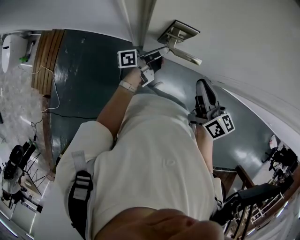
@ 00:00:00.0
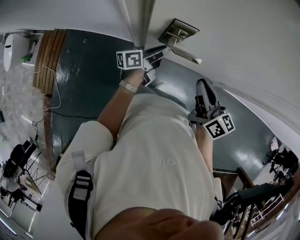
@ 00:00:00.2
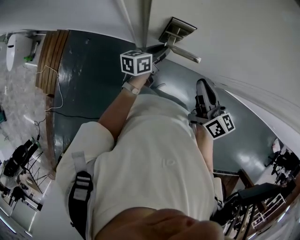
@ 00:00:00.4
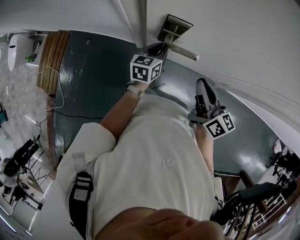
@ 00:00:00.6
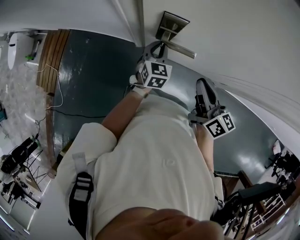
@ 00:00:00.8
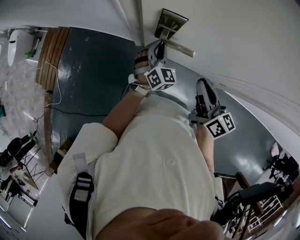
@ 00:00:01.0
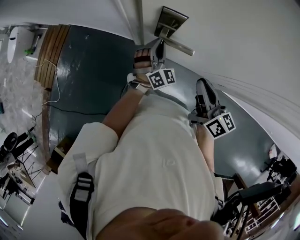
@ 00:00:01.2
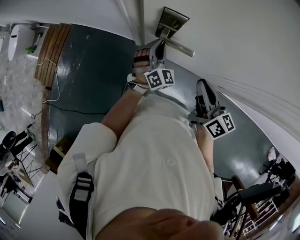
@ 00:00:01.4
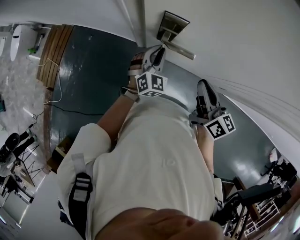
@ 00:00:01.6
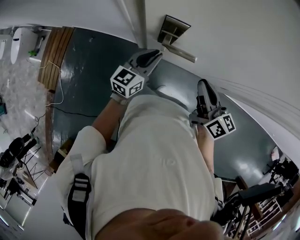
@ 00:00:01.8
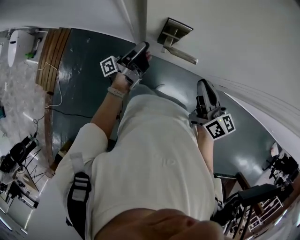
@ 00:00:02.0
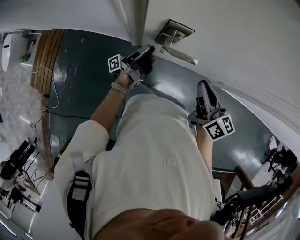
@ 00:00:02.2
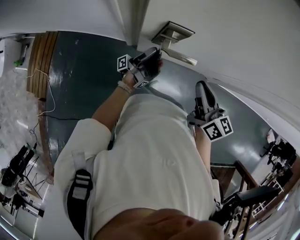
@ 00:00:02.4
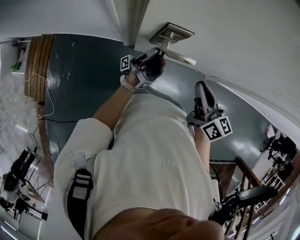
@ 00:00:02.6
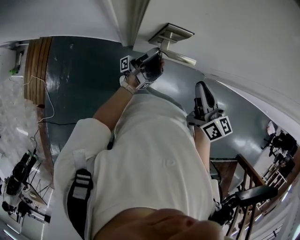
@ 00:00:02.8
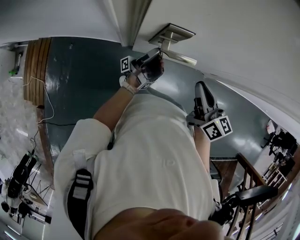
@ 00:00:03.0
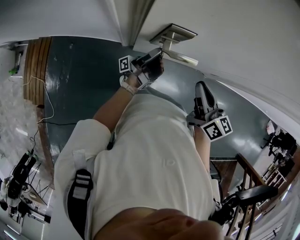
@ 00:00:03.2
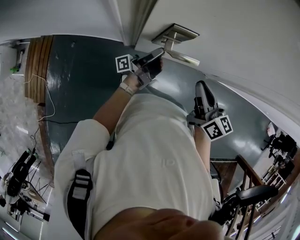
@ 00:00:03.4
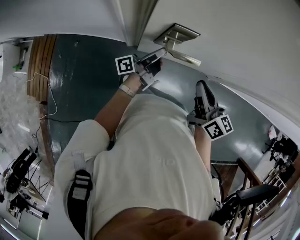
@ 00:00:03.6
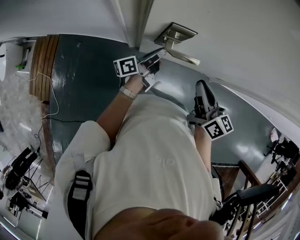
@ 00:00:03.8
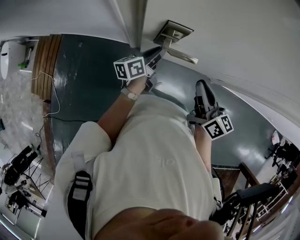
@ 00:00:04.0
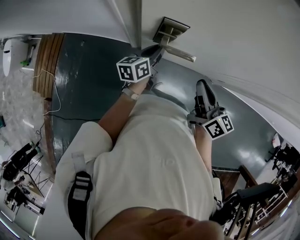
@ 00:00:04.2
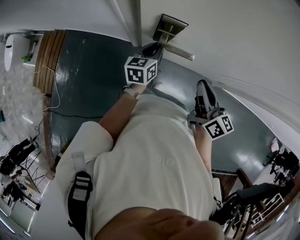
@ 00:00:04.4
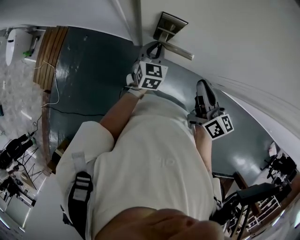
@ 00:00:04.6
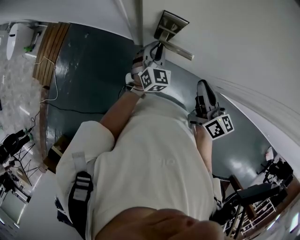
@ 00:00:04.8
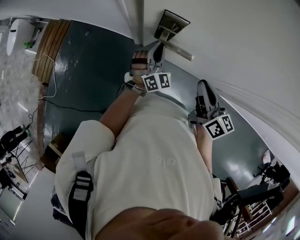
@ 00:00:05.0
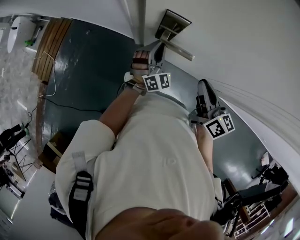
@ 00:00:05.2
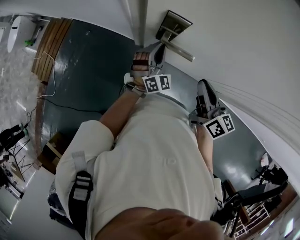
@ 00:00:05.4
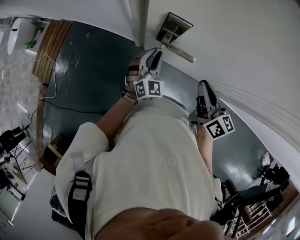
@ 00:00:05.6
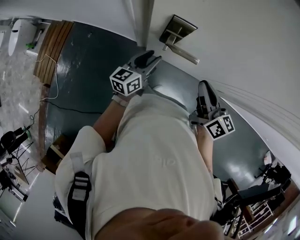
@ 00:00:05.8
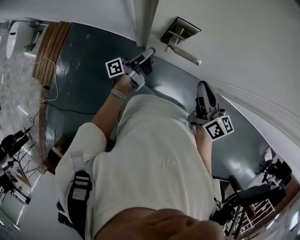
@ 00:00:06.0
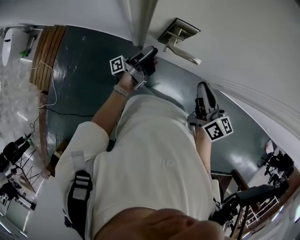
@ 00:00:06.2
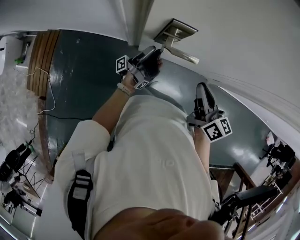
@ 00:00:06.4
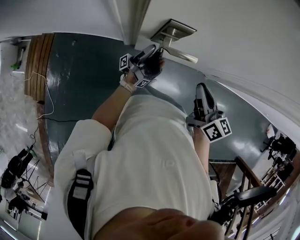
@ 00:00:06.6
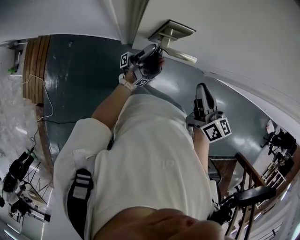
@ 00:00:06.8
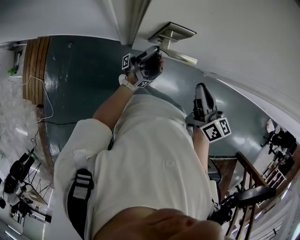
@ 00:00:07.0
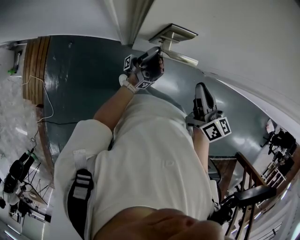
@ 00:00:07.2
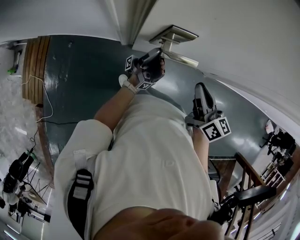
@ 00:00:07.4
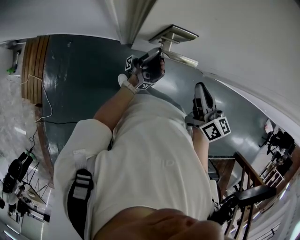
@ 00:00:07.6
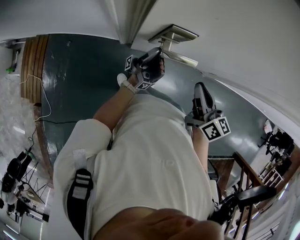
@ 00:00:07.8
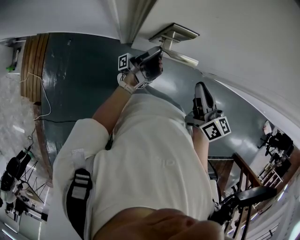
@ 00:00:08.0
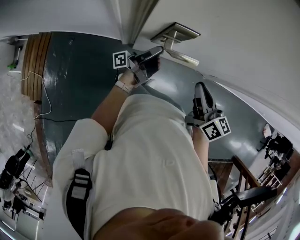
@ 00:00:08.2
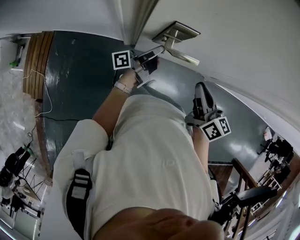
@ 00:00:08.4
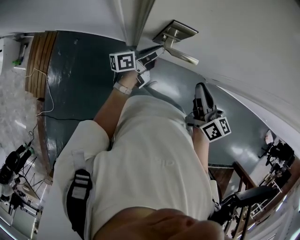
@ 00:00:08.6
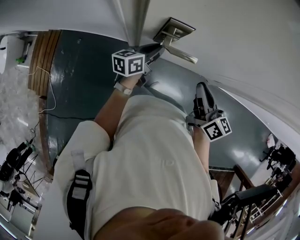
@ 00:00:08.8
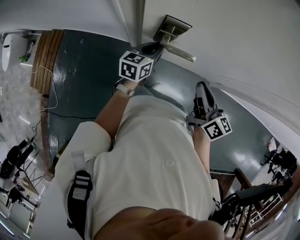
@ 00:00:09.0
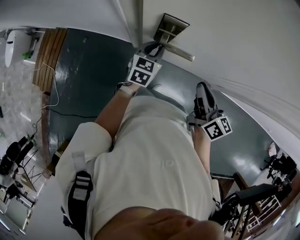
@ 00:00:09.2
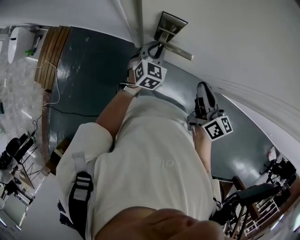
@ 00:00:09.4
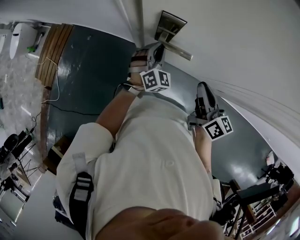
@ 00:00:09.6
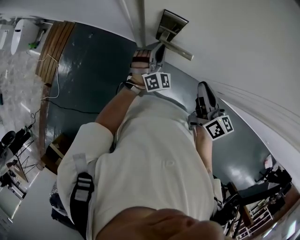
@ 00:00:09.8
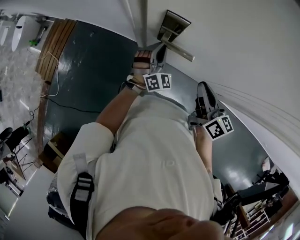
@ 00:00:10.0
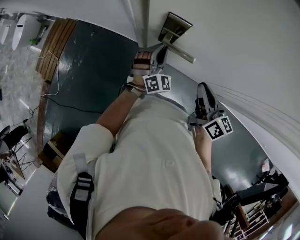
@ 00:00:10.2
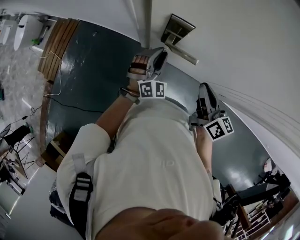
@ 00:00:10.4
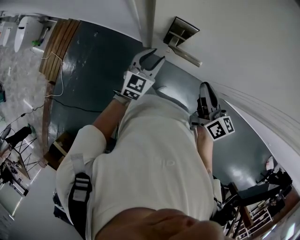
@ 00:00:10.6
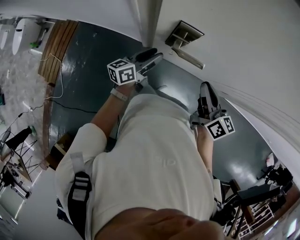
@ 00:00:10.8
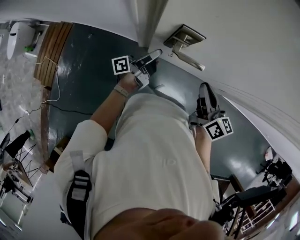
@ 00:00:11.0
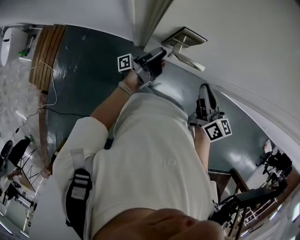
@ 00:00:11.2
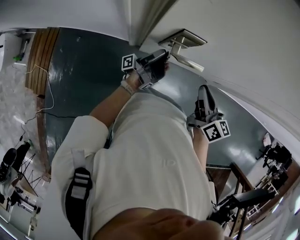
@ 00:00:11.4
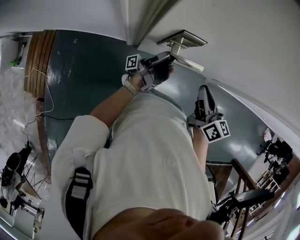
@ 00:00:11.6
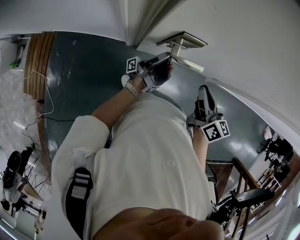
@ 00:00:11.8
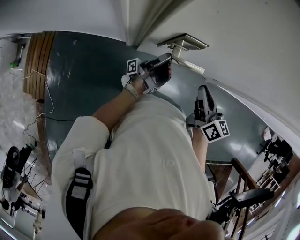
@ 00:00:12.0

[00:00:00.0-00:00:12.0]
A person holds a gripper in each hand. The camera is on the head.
00:00:00.0 to 00:00:01.6: The left gripper twists about 100 degrees clockwise, seen from behind.
00:00:01.6 to 00:00:03.0: The left gripper reaches some 10 cm to the left, then returns, twists about 130 degrees counterclockwise, seen from behind, and opens, then closes once more.
00:00:03.0 to 00:00:04.4: The left gripper points its fingers approximately 70 degrees further downward.
00:00:04.4 to 00:00:06.0: The left gripper is displaced to the left by about 5 cm, points its fingers roughly 40 degrees further upward, and opens up.
00:00:06.0 to 00:00:07.6: The left gripper heads to the right, covering some 5 cm, tips its fingers upward by some 30 degrees, and closes up.
00:00:07.6 to 00:00:09.0: The left gripper angles its fingers downward, by about 70 degrees.
00:00:09.0 to 00:00:10.4: The left gripper rolls clockwise, seen from behind, by approximately 60 degrees.
00:00:10.4 to 00:00:12.0: The left gripper tips its fingers upward by some 60 degrees. The right gripper changes place by approximately 5 cm.

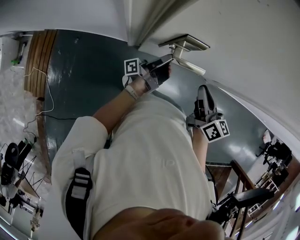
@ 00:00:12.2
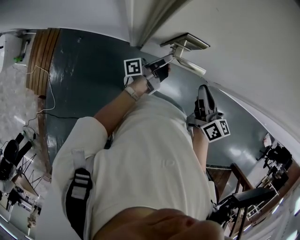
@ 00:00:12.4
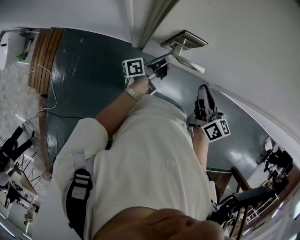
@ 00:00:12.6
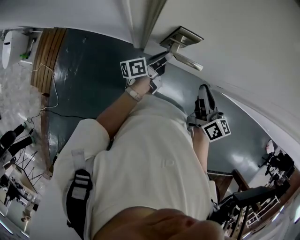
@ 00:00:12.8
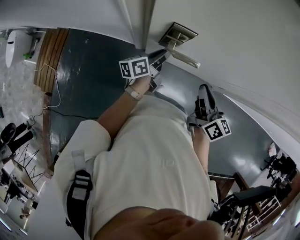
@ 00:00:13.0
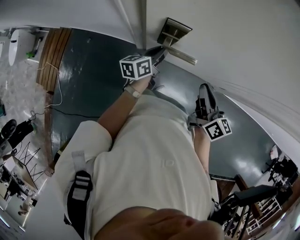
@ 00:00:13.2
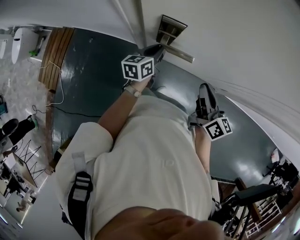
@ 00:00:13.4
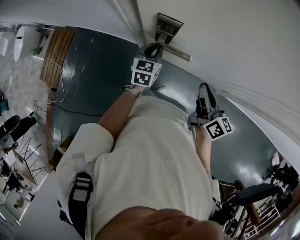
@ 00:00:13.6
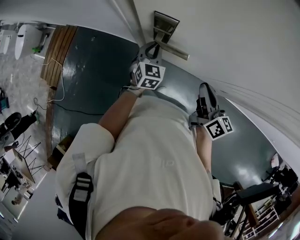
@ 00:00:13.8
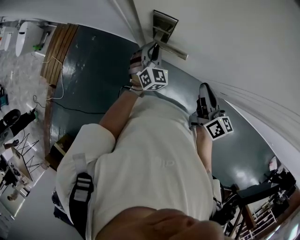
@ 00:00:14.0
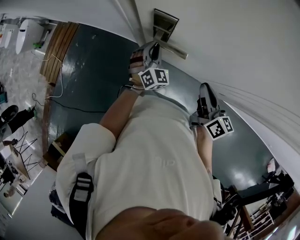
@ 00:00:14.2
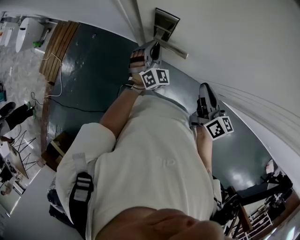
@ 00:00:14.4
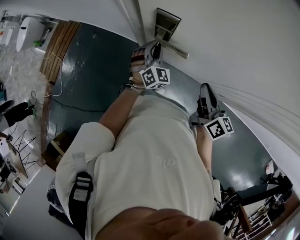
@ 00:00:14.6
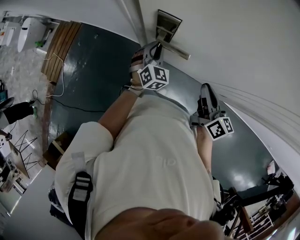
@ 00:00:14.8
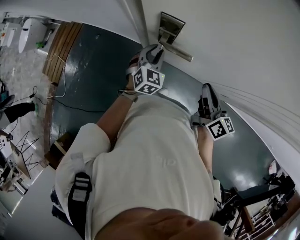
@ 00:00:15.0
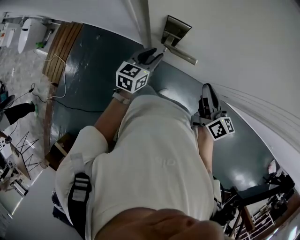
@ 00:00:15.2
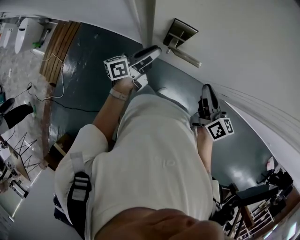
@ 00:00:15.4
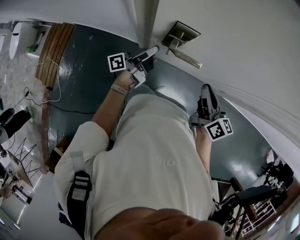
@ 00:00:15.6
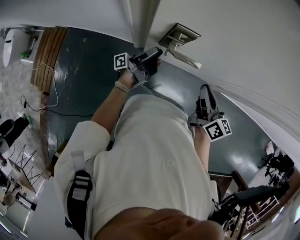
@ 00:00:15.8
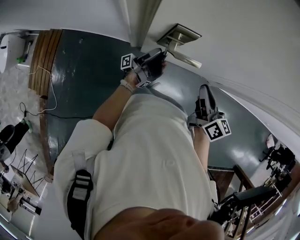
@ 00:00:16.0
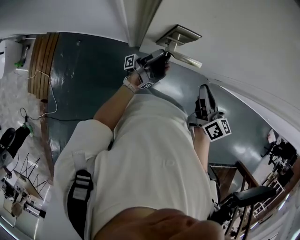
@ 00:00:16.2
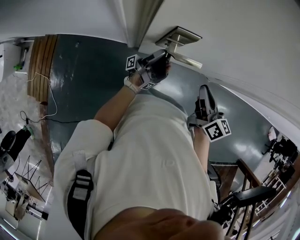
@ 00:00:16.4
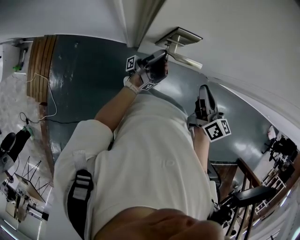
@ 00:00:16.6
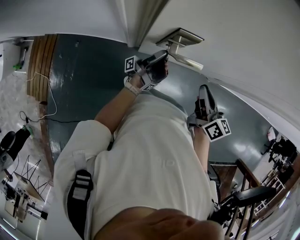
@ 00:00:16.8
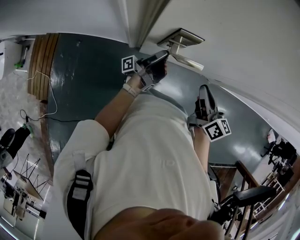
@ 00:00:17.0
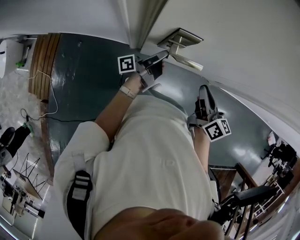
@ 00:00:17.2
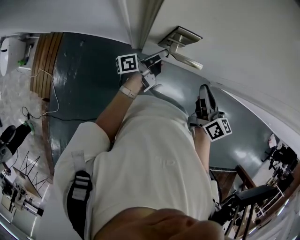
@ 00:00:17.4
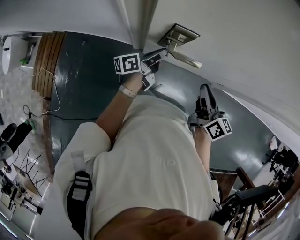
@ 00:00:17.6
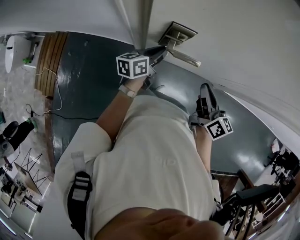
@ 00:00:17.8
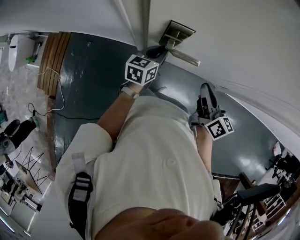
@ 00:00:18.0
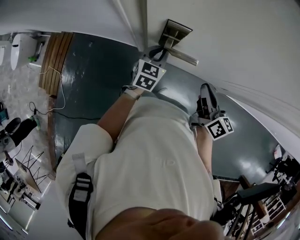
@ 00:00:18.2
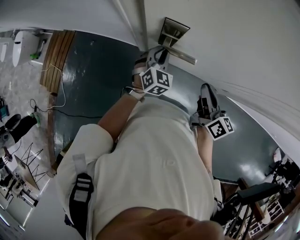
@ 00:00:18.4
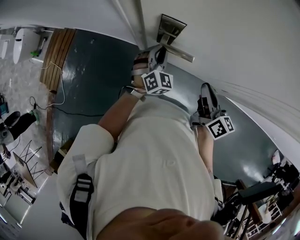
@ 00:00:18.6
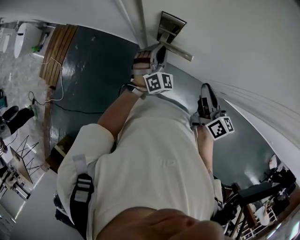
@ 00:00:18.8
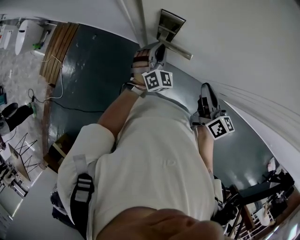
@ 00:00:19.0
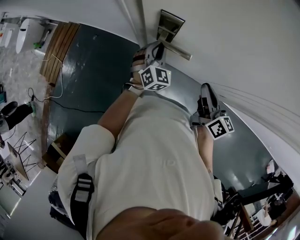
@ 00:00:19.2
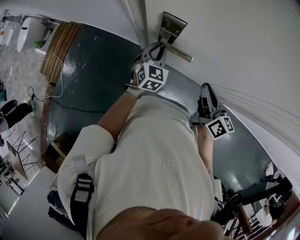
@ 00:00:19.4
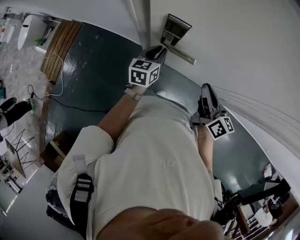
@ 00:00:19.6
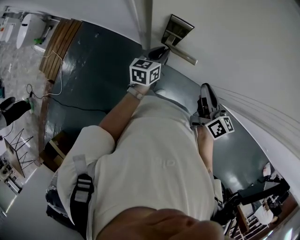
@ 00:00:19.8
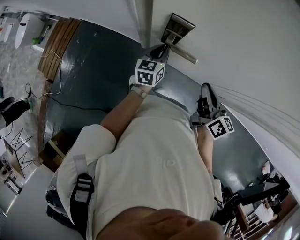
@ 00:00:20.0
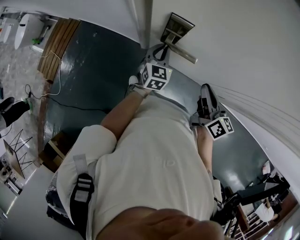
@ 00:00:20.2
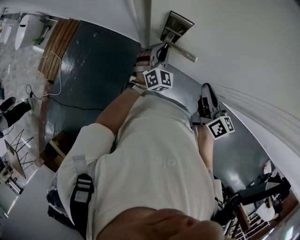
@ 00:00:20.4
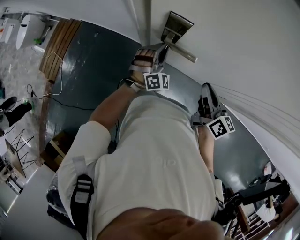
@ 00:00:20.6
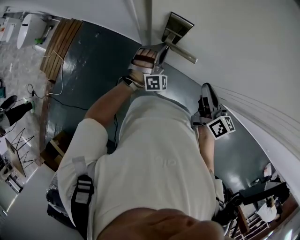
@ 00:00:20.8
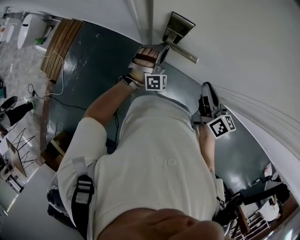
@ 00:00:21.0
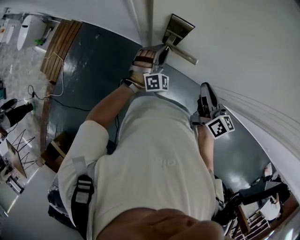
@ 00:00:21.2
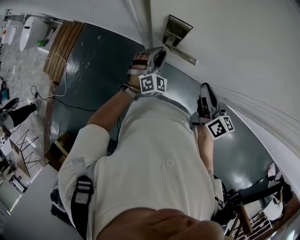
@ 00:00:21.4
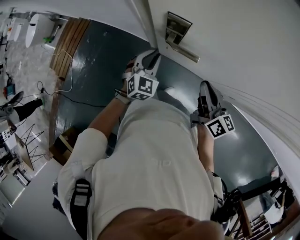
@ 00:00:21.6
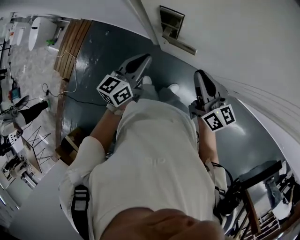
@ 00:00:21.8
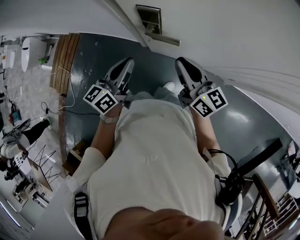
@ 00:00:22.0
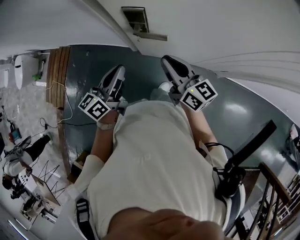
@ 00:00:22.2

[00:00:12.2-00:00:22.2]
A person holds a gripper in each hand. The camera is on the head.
00:00:12.2 to 00:00:13.6: The right gripper travels to the right by roughly 5 cm. Meanwhile the left gripper tilts its fingers roughly 60 degrees downward.
00:00:13.6 to 00:00:15.0: The left gripper swivels some 30 degrees.
00:00:15.0 to 00:00:16.4: The left gripper angles its fingers upward, by roughly 70 degrees. Meanwhile the right gripper shifts some 5 cm to the left.
00:00:16.4 to 00:00:18.0: The left gripper tips its fingers downward by about 70 degrees, and closes.
00:00:18.0 to 00:00:19.4: The left gripper turns by about 40 degrees.
00:00:19.4 to 00:00:20.8: The left gripper rolls clockwise, seen from behind, by roughly 50 degrees.
00:00:20.8 to 00:00:22.2: The left gripper travels upward, backward and to the left by about 25 cm, and rolls counterclockwise, seen from behind, by approximately 100 degrees. Meanwhile the right gripper shifts approximately 10 cm to the left and upward.

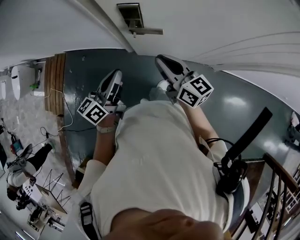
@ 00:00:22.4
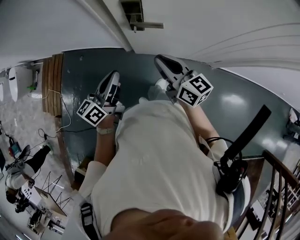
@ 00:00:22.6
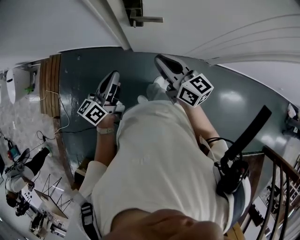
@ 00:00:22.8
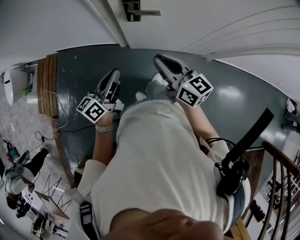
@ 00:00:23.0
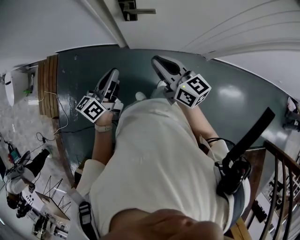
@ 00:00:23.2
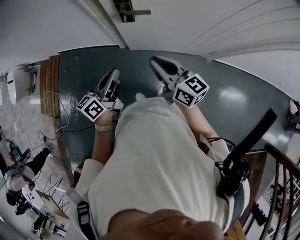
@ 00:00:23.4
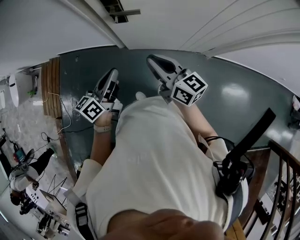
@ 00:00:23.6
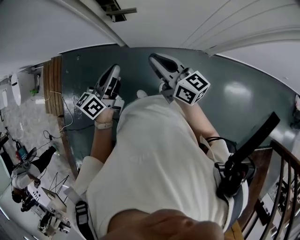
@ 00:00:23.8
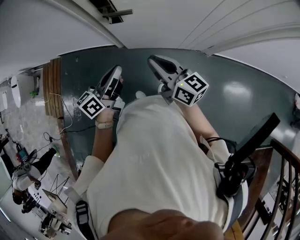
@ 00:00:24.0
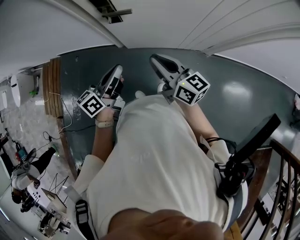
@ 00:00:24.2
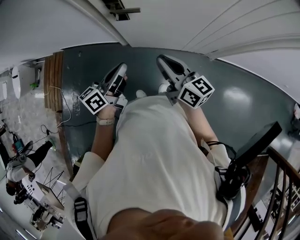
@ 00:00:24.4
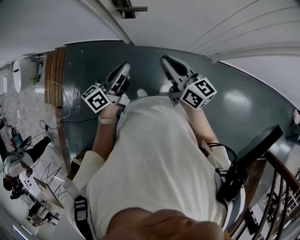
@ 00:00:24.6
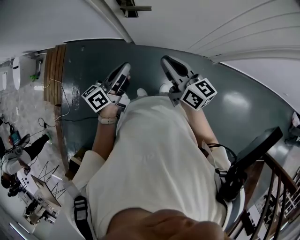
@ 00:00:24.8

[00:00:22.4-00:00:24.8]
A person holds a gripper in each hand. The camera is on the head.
00:00:22.4 to 00:00:23.6: The two grippers go about 10 cm backward.
00:00:23.6 to 00:00:24.8: Both grippers move upward, some 5 cm.
